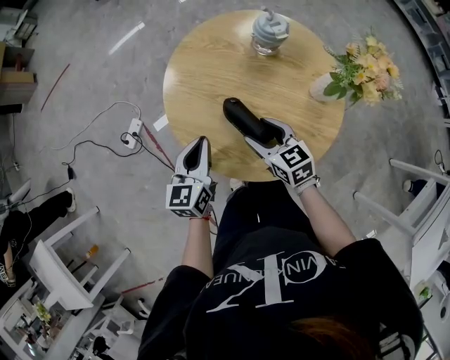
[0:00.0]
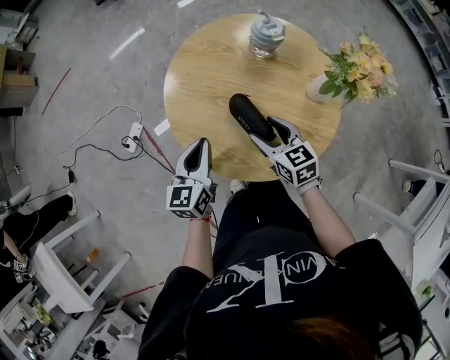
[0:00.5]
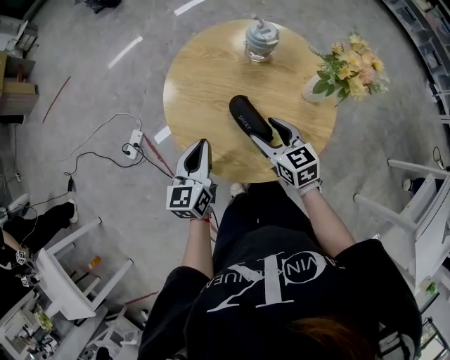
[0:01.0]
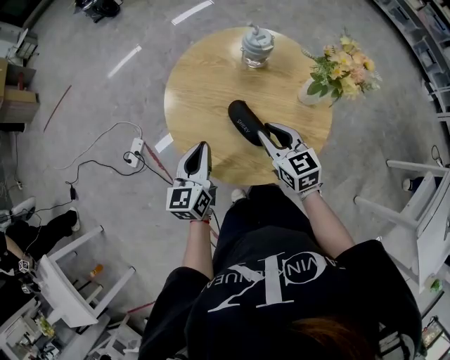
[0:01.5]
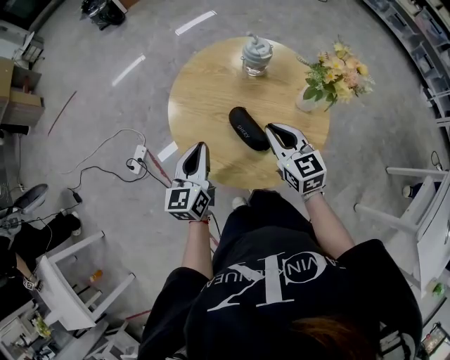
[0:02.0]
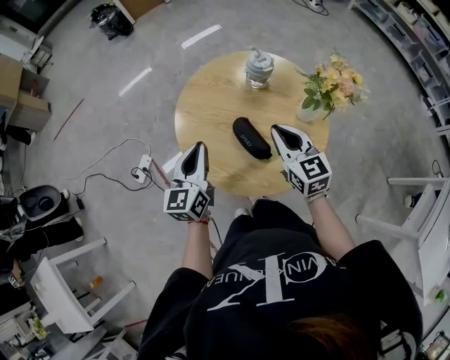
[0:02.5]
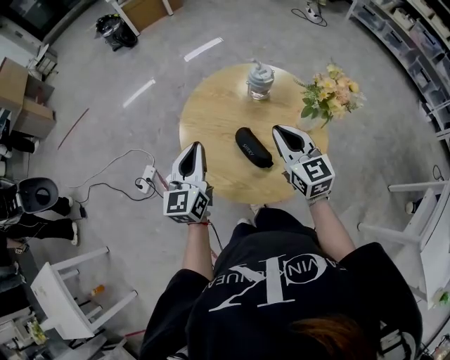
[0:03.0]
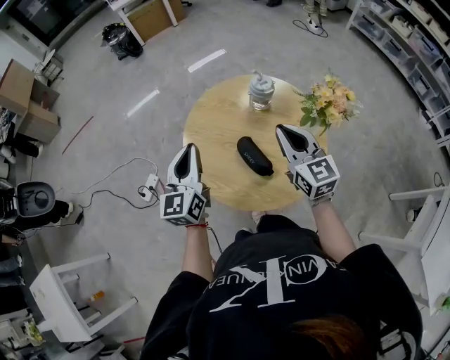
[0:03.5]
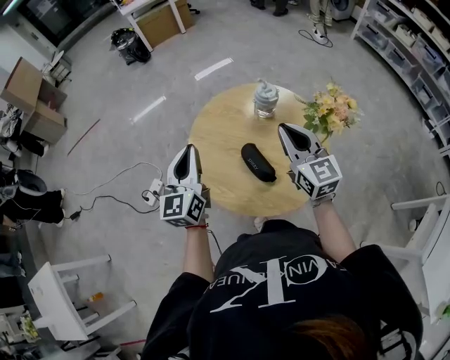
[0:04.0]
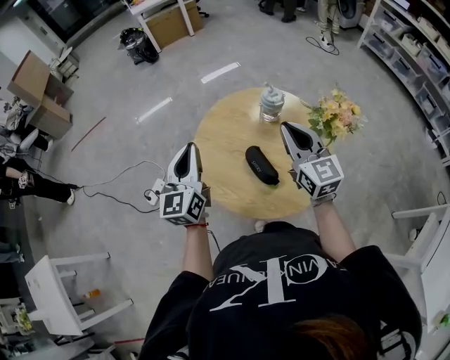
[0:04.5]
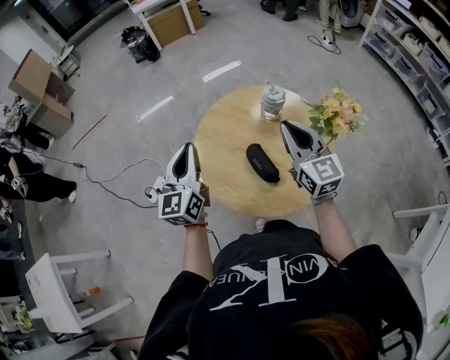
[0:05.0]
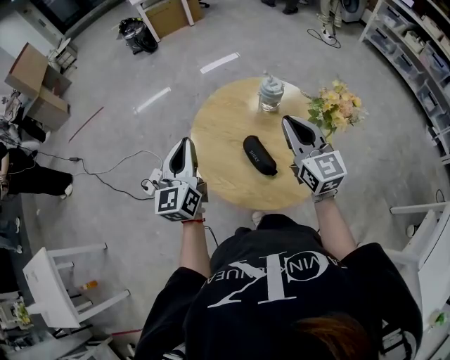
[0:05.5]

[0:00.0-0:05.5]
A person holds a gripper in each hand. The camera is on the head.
0:00.0 to 0:02.0: The right gripper goes roughly 10 cm upward and to the right, and closes its fingers; the left gripper shifts approximately 5 cm upward.
0:02.0 to 0:03.5: Both grippers move upward, about 10 cm.
0:03.5 to 0:05.5: The grippers stay close to where they were, moving slightly.

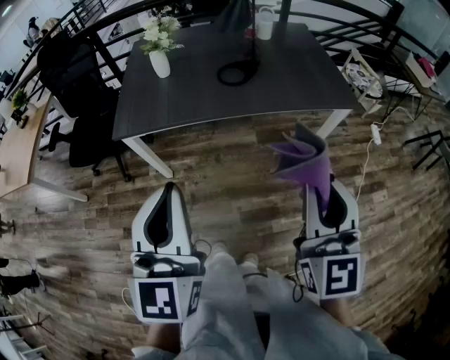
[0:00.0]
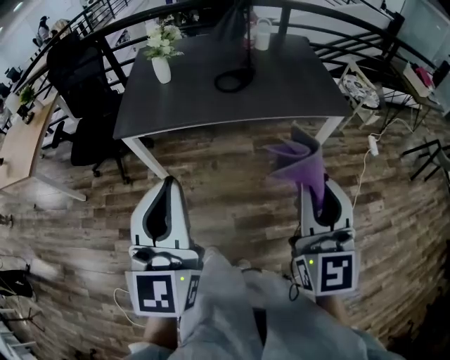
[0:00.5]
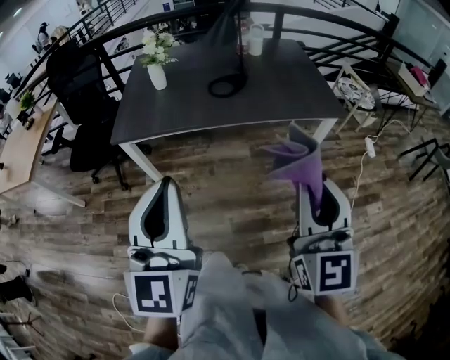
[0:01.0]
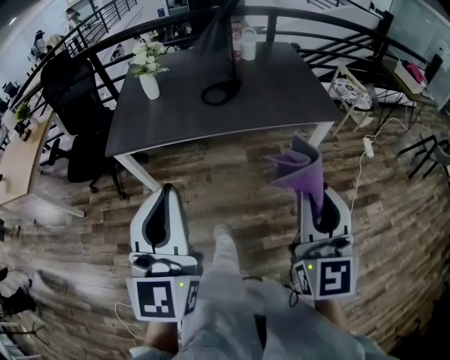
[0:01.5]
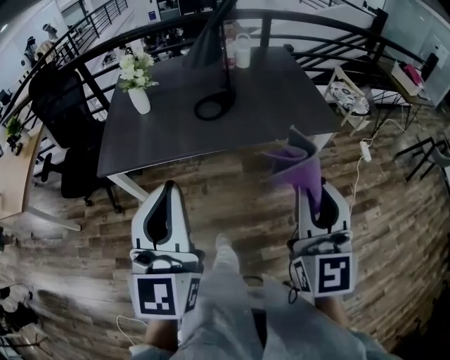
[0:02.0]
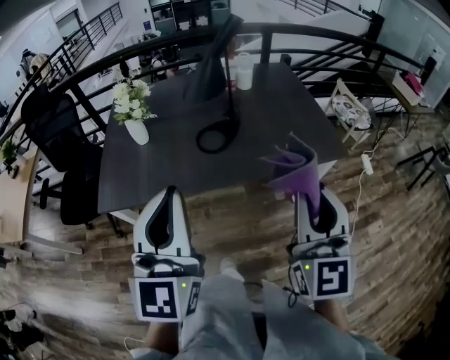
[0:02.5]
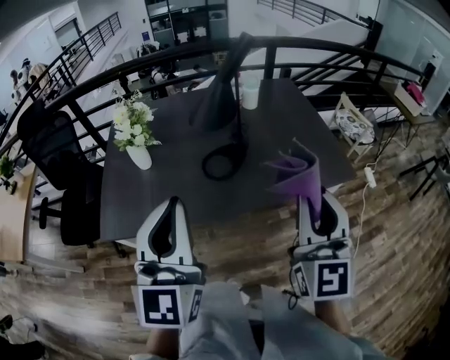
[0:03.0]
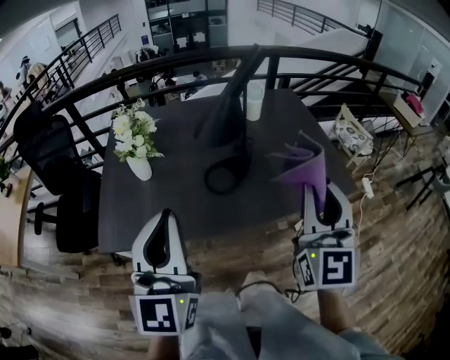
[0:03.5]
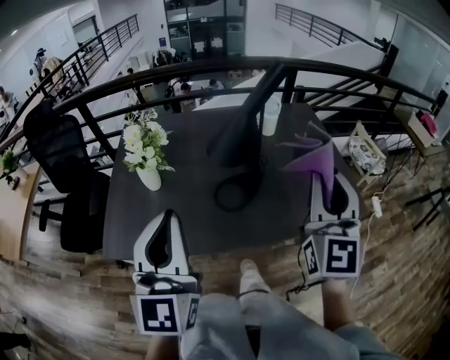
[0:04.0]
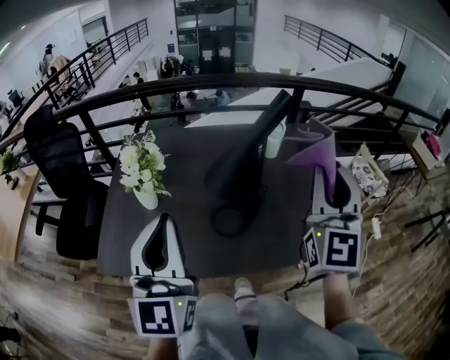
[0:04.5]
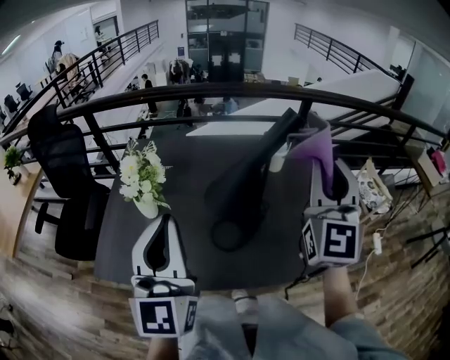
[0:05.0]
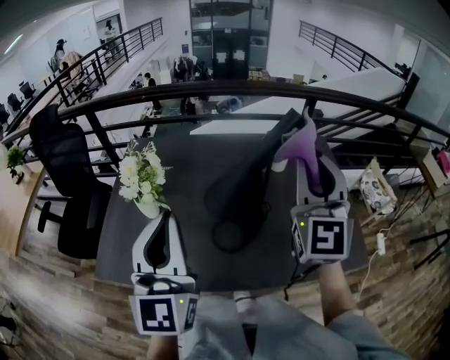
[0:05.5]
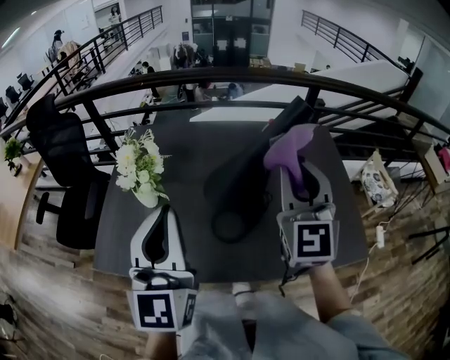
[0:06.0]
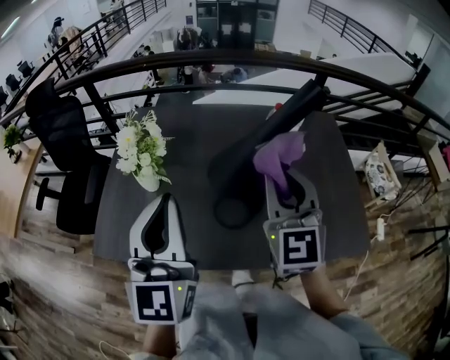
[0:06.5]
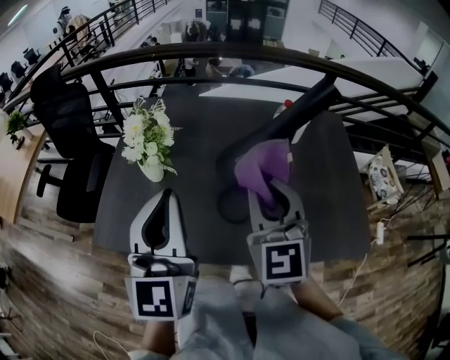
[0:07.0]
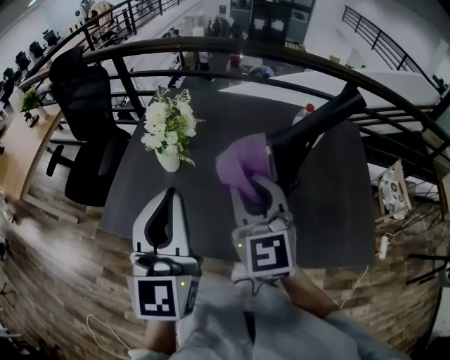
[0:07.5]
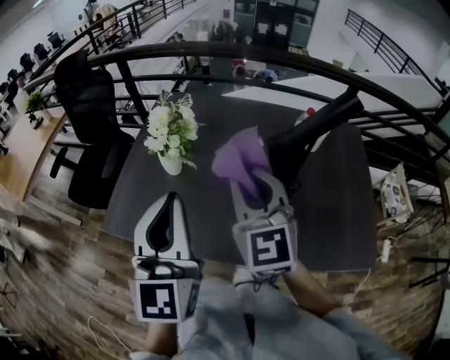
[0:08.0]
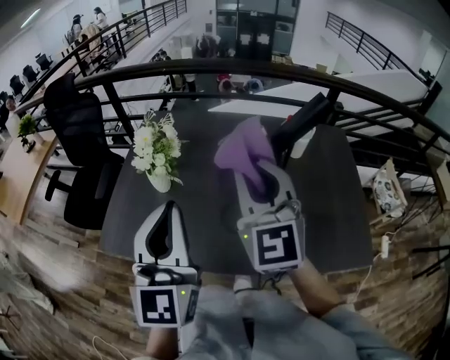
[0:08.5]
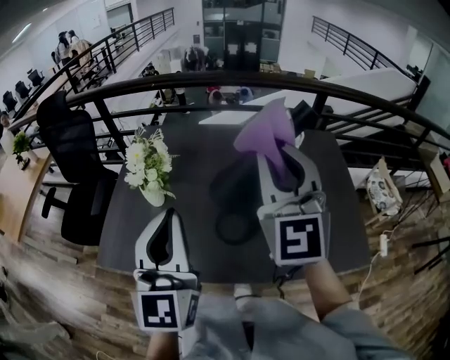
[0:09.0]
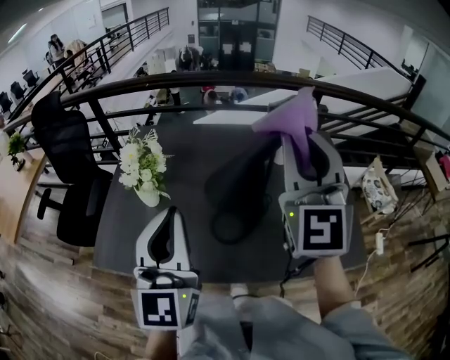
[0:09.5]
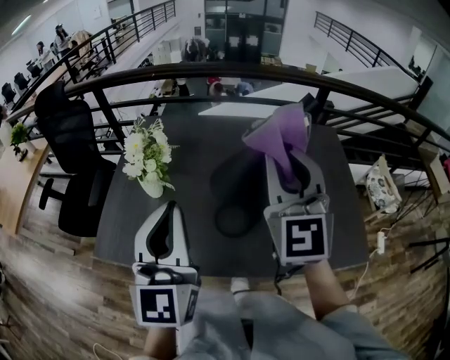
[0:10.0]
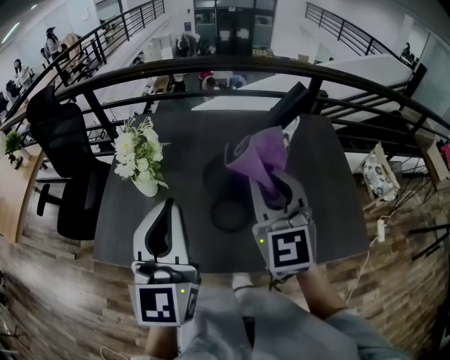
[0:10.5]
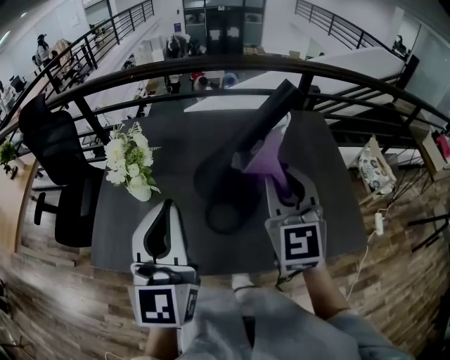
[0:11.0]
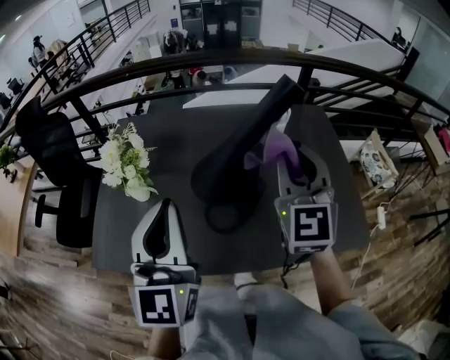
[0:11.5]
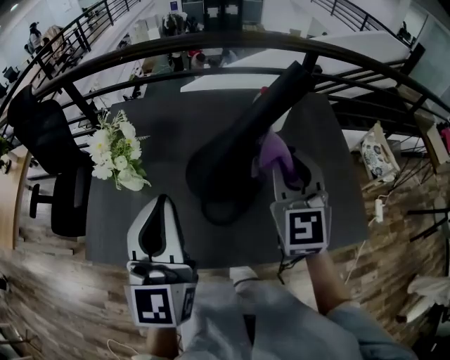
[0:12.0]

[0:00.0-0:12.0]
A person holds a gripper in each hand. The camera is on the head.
0:00.0 to 0:02.0: Both grippers travel together to the right and forward, about 10 cm.
0:02.0 to 0:04.0: Both grippers travel together forward, some 30 cm.
0:04.0 to 0:06.0: The left gripper heads forward, covering roughly 10 cm. Meanwhile the right gripper shifts roughly 15 cm forward.
0:06.0 to 0:08.0: The right gripper shifts approximately 15 cm to the left, and rotates about 30 degrees; the left gripper moves about 5 cm.
0:08.0 to 0:10.0: The right gripper goes about 15 cm to the right and upward, and turns by some 20 degrees.
0:10.0 to 0:12.0: The right gripper heads downward and to the right, covering approximately 15 cm. The left gripper changes place by approximately 5 cm.

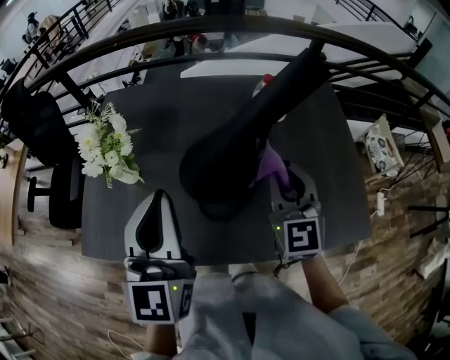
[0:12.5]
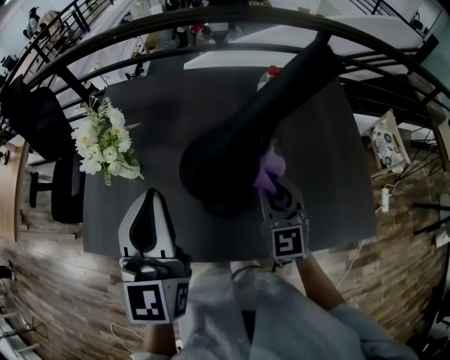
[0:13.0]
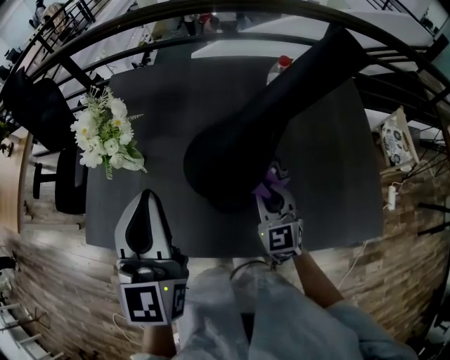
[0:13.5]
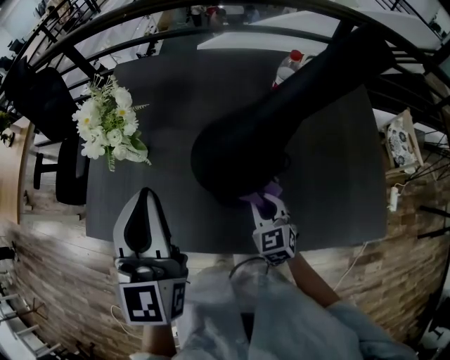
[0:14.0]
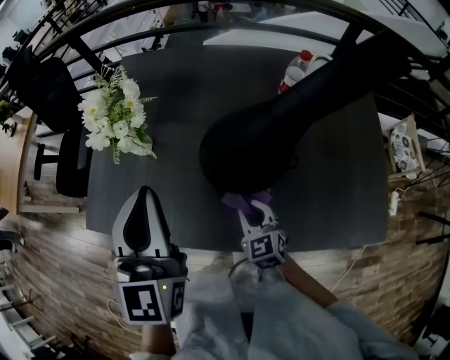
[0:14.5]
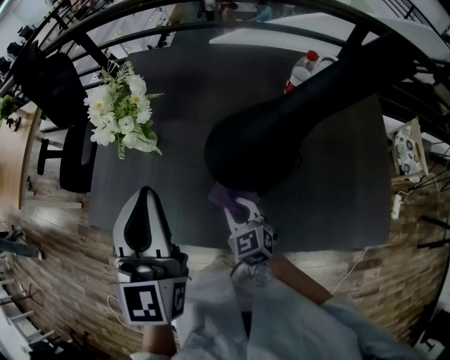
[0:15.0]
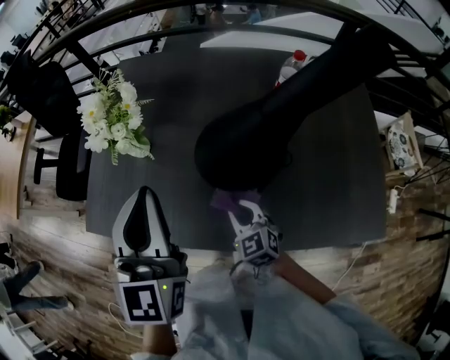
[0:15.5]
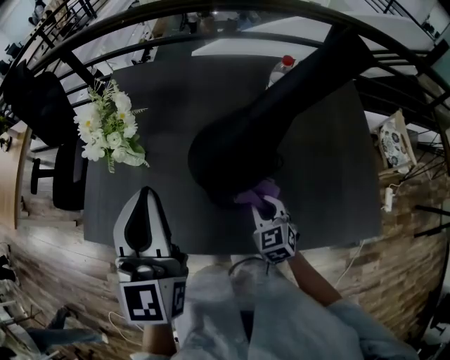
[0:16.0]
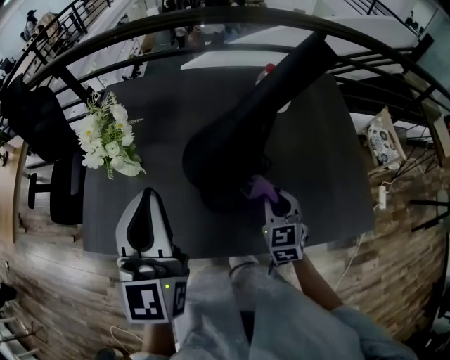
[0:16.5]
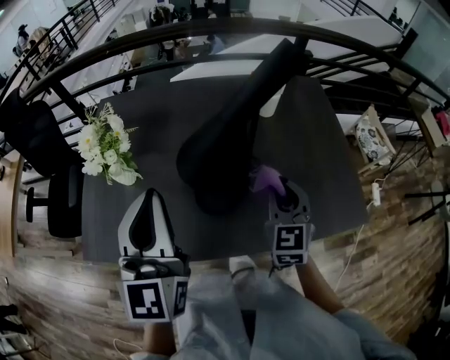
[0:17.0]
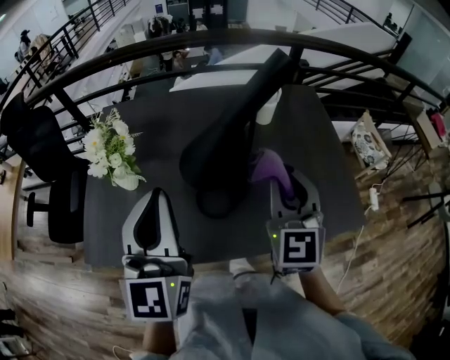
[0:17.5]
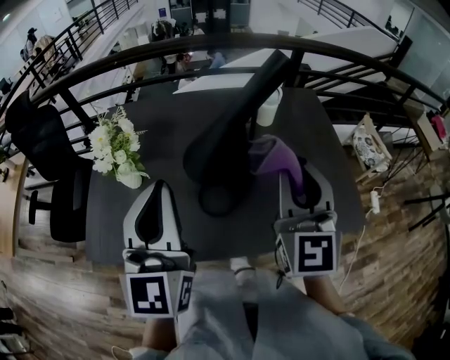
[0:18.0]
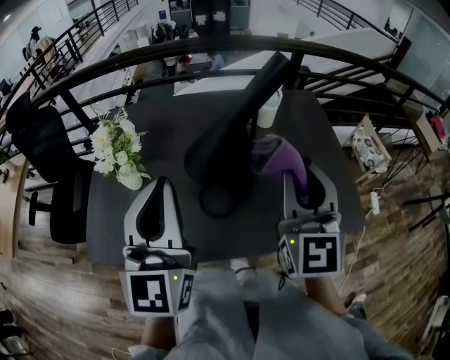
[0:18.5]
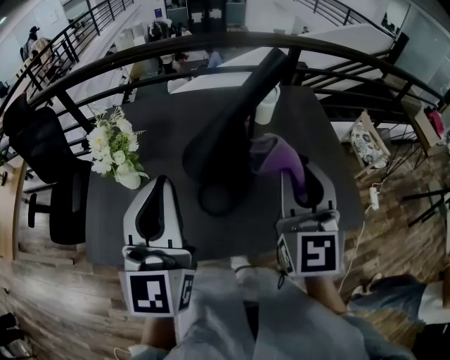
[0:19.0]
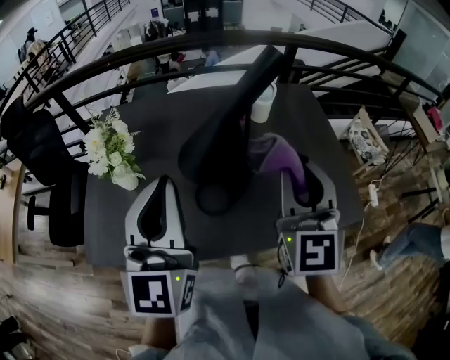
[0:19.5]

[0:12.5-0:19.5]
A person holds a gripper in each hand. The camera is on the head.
0:12.5 to 0:14.5: The left gripper moves to the left, roughly 5 cm, while the right gripper goes about 25 cm downward and to the left, and turns by about 30 degrees.
0:14.5 to 0:16.0: The right gripper goes roughly 5 cm to the right.
0:16.0 to 0:17.5: The left gripper moves approximately 5 cm, while the right gripper travels upward by roughly 30 cm, and angles its fingers upward, by approximately 30 degrees.
0:17.5 to 0:19.5: The right gripper moves upward, roughly 5 cm.

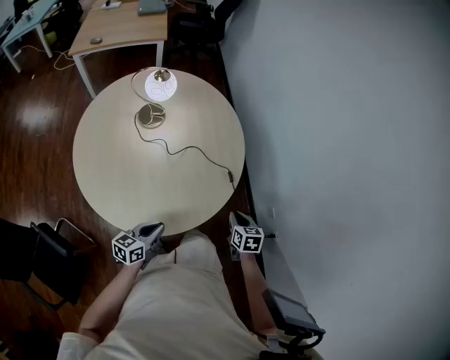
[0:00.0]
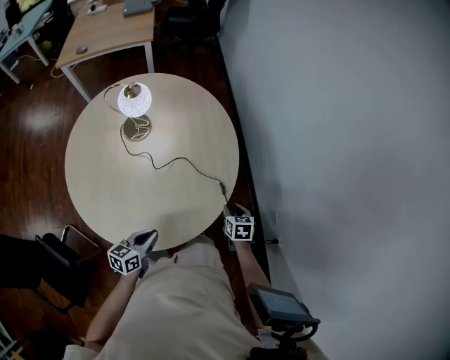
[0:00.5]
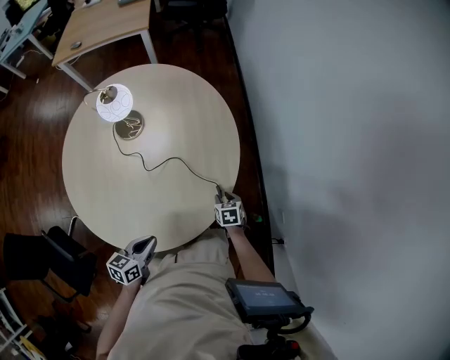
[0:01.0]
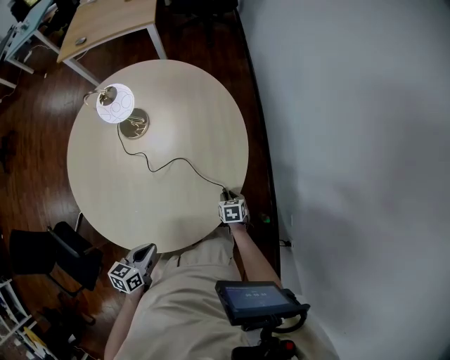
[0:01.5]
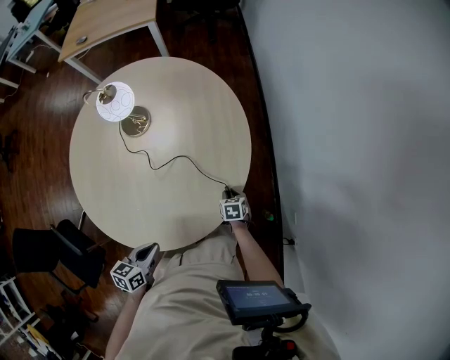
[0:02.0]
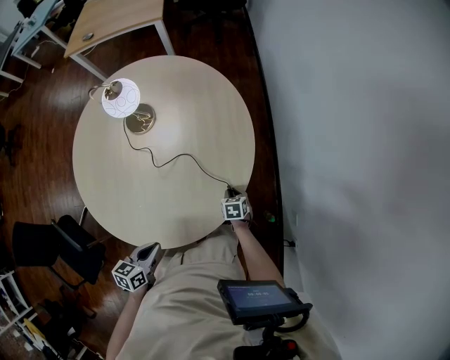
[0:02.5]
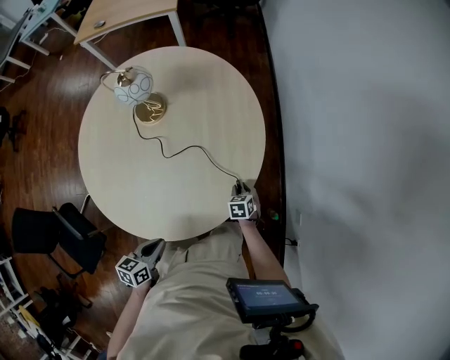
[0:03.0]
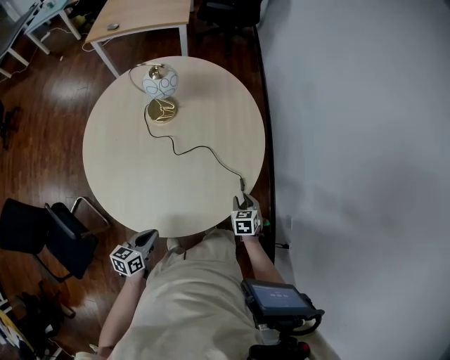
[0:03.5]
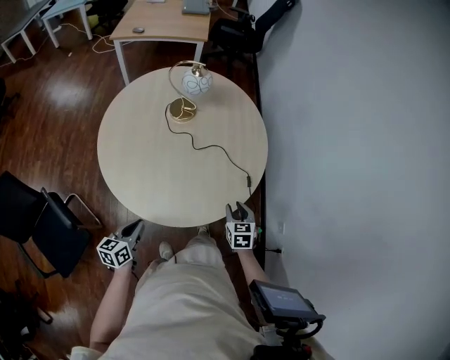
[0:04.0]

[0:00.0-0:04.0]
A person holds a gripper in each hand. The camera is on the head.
0:00.0 to 0:02.0: The right gripper goes about 30 cm downward and forward, and rotates roughly 20 degrees, while the left gripper heads to the right and forward, covering about 10 cm, and rotates approximately 20 degrees.
0:02.0 to 0:04.0: The left gripper shifts about 20 cm to the left and backward, and swivels some 20 degrees. Meanwhile the right gripper is displaced upward, backward and to the left by roughly 30 cm, and changes its angle by approximately 30 degrees.
